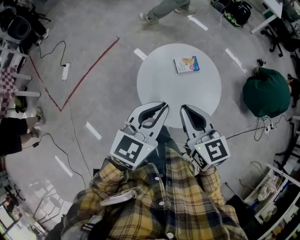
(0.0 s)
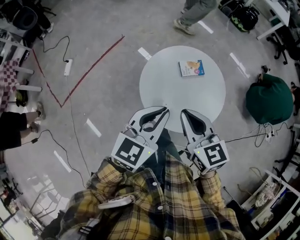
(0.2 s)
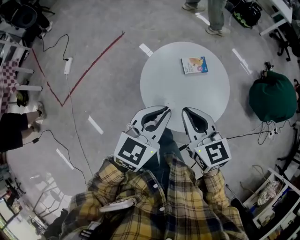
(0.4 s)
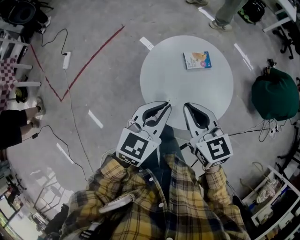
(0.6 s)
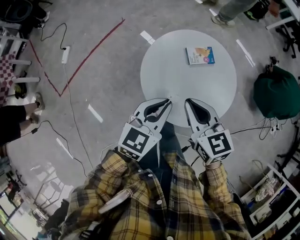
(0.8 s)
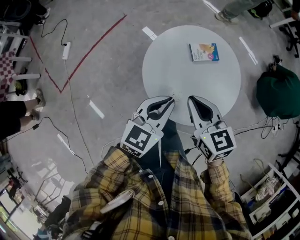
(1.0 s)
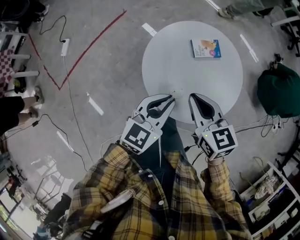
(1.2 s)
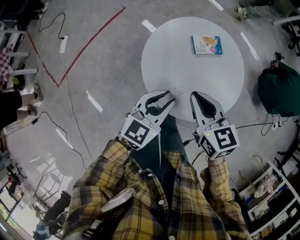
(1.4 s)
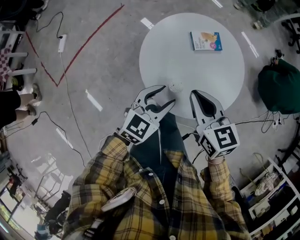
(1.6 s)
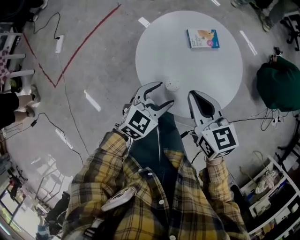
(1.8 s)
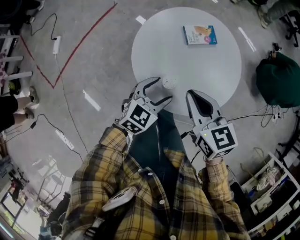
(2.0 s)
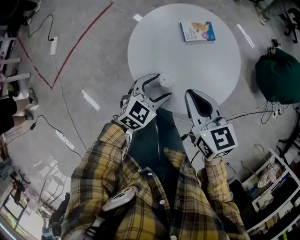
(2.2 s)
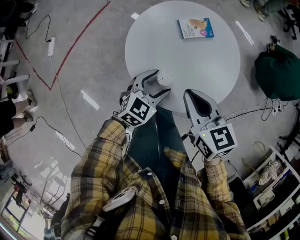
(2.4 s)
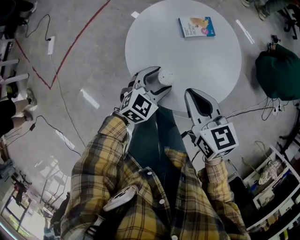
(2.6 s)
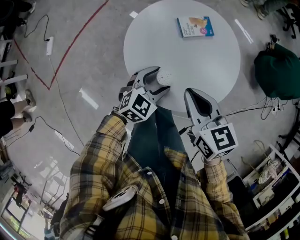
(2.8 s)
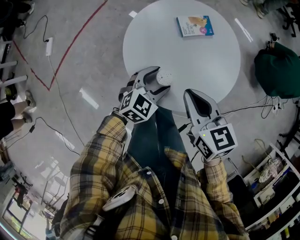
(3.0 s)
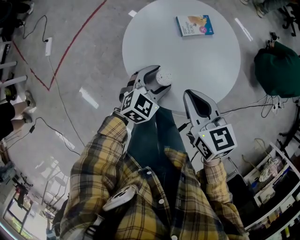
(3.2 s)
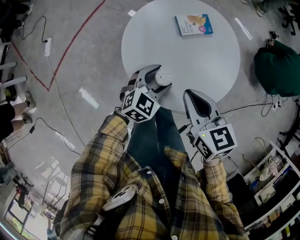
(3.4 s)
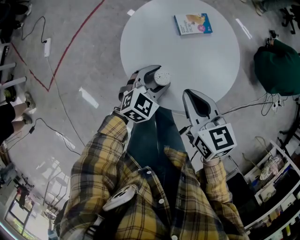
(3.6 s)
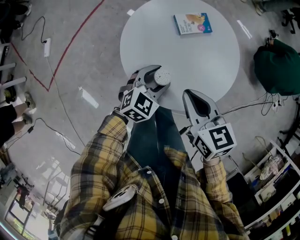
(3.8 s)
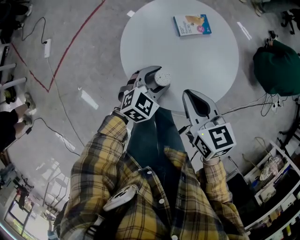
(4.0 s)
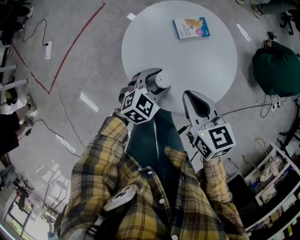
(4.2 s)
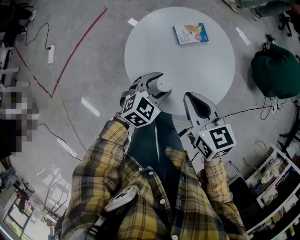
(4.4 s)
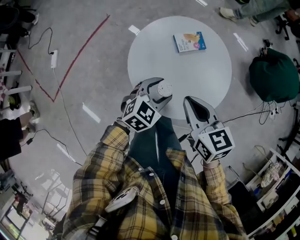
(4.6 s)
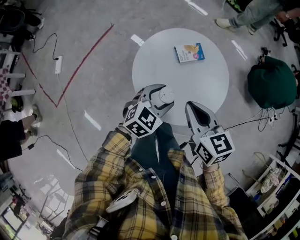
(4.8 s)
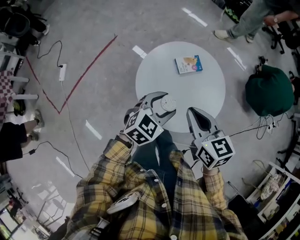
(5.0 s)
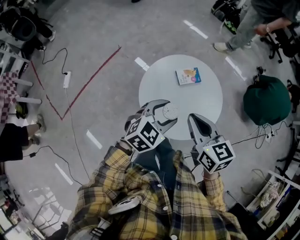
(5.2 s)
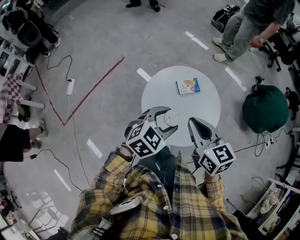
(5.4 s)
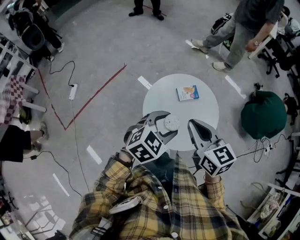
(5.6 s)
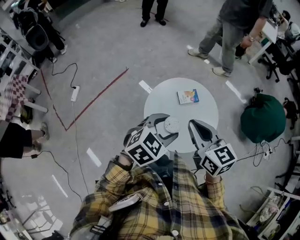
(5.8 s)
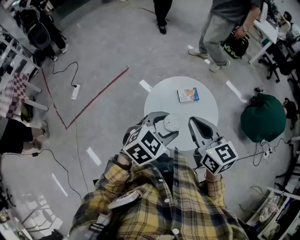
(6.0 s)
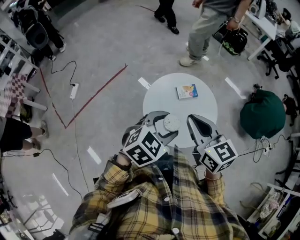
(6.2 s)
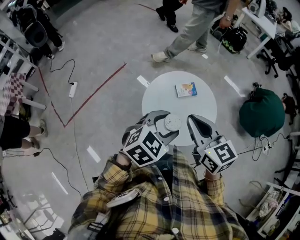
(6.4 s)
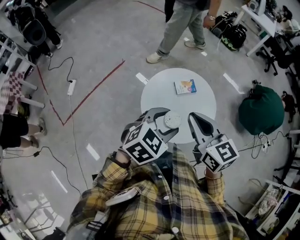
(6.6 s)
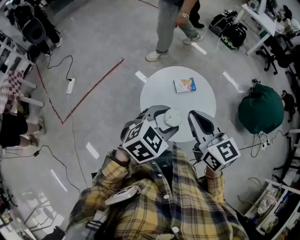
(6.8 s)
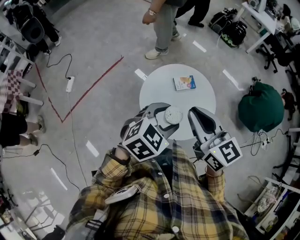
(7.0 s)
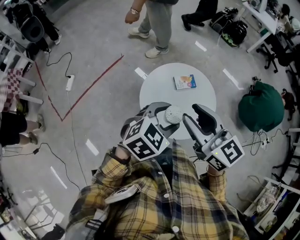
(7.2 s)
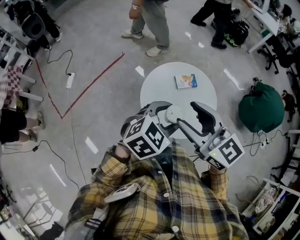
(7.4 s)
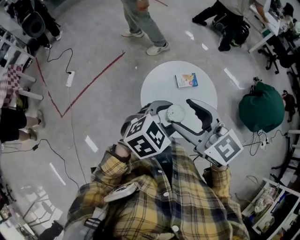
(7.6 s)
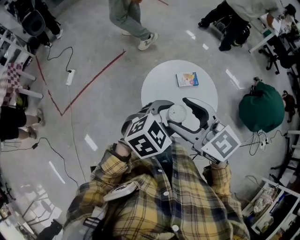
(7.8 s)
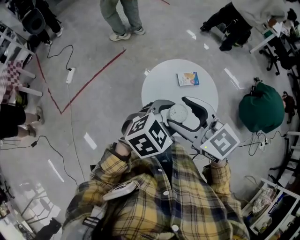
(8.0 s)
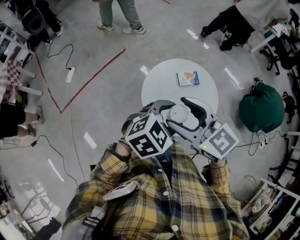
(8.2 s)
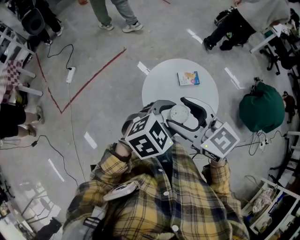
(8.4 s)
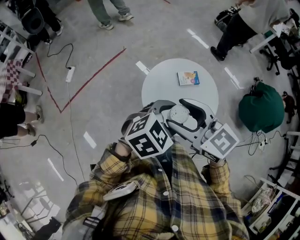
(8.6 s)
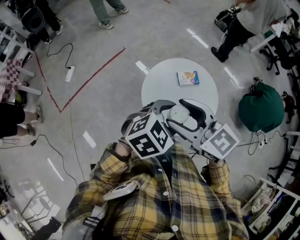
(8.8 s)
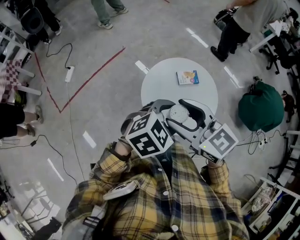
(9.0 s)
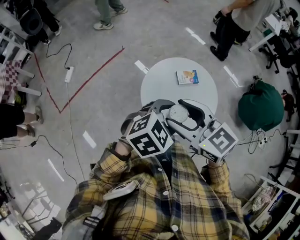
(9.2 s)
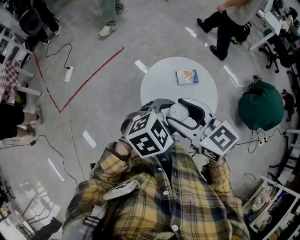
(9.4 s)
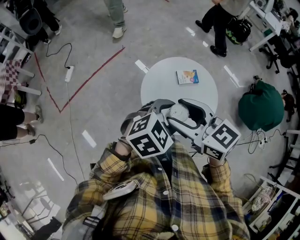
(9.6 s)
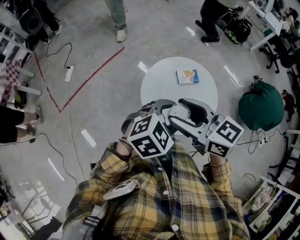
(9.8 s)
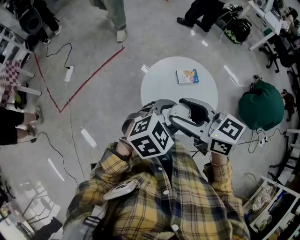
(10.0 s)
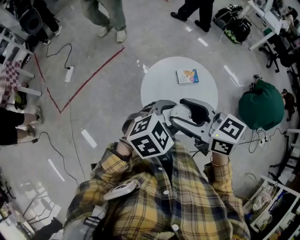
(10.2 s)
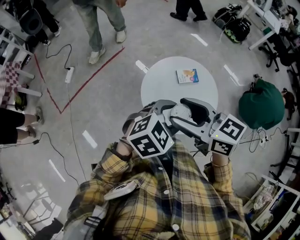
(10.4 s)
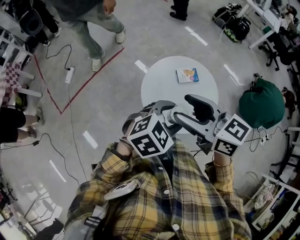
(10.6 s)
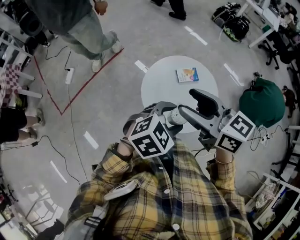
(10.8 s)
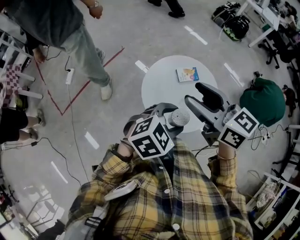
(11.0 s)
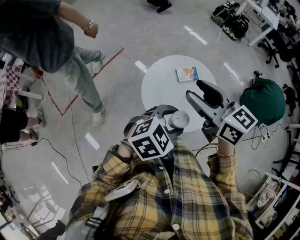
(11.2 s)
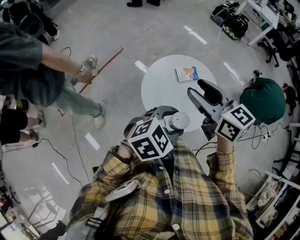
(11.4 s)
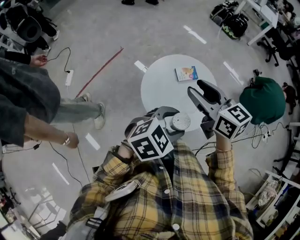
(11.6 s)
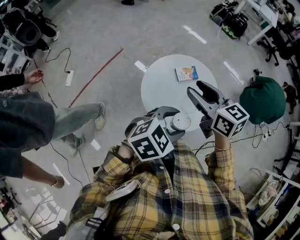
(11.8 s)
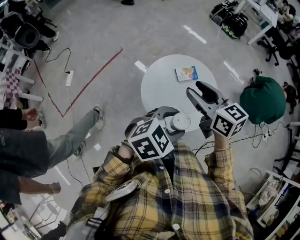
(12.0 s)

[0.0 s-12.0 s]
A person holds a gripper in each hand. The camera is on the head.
0.0 to 1.6 s: The left gripper is displaced downward by roughly 20 cm, and opens up; the right gripper is displaced downward by approximately 15 cm.
1.6 to 3.0 s: The left gripper travels downward by roughly 10 cm, and opens up.
3.0 to 4.4 s: The grippers stay close to where they were, moving slightly.
4.4 to 6.0 s: The grippers both shift upward by roughly 25 cm.
6.0 to 7.6 s: The right gripper ends up approximately 5 cm from where it was, swivels some 20 degrees, and opens up.
7.6 to 9.0 s: There are only small adjustments of the grippers.
9.0 to 10.4 s: The grippers make only small movements.
10.4 to 12.0 s: The right gripper moves forward and to the right, some 10 cm, and changes its angle by about 20 degrees.

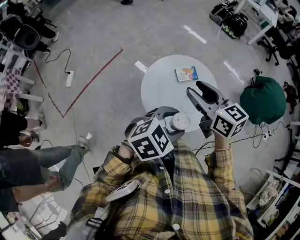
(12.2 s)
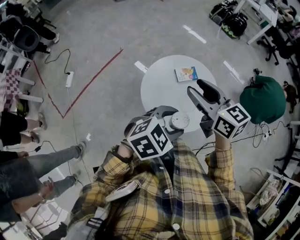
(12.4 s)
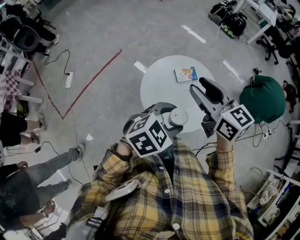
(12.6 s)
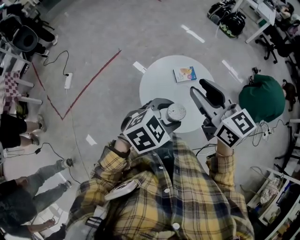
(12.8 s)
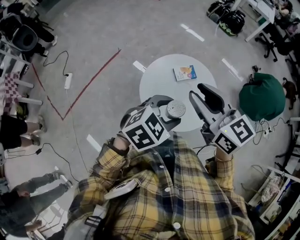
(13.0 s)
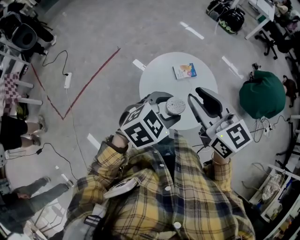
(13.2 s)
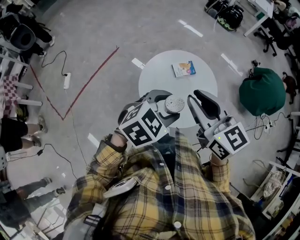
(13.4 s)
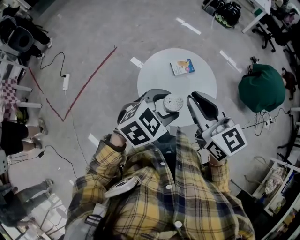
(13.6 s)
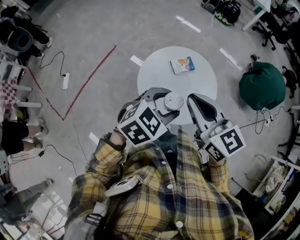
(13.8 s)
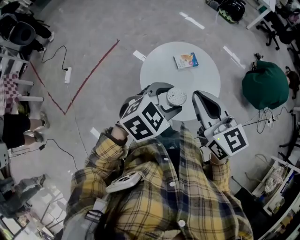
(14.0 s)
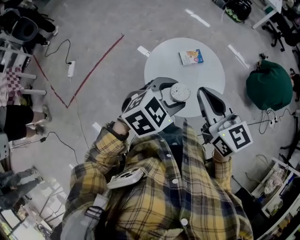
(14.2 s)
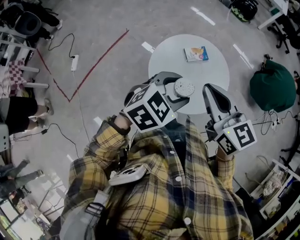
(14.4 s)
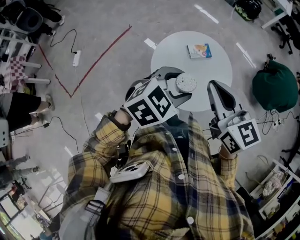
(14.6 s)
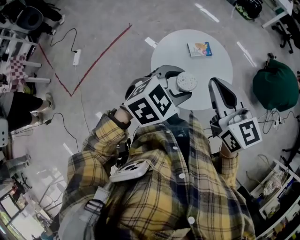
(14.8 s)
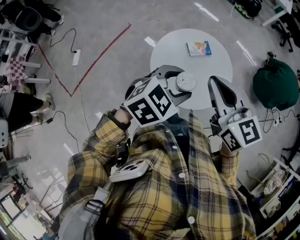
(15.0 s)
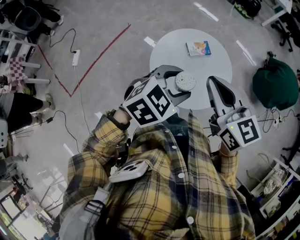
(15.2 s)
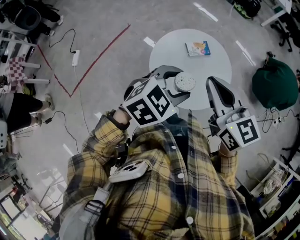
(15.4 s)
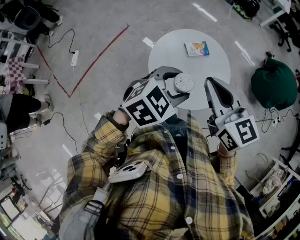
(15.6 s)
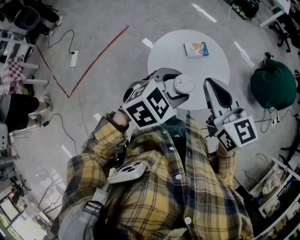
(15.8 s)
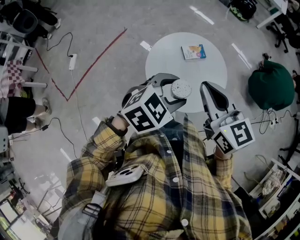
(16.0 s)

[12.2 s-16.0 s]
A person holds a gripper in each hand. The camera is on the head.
12.2 to 13.4 s: The right gripper goes some 5 cm backward and upward. Meanwhile the left gripper changes place by some 5 cm.
13.4 to 16.0 s: The grippers stay close to where they were, moving slightly.

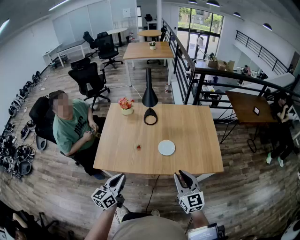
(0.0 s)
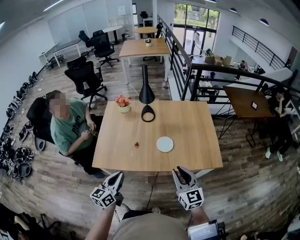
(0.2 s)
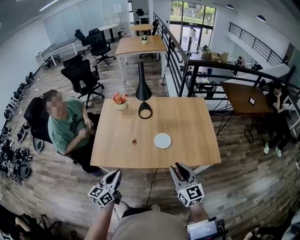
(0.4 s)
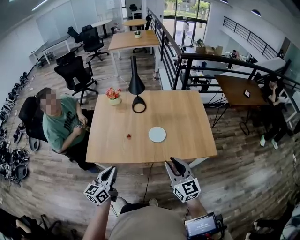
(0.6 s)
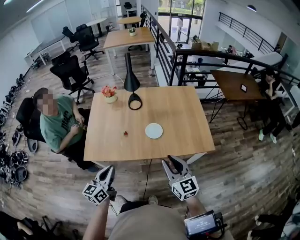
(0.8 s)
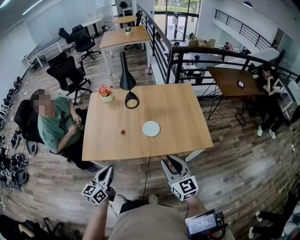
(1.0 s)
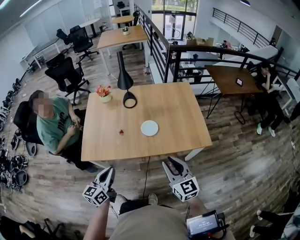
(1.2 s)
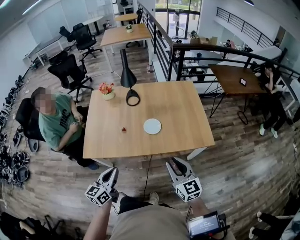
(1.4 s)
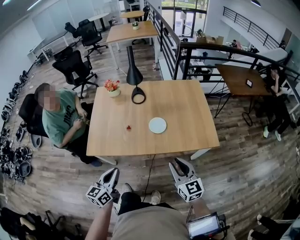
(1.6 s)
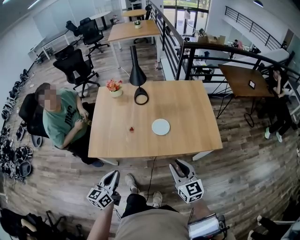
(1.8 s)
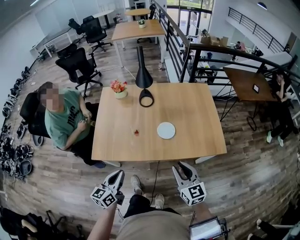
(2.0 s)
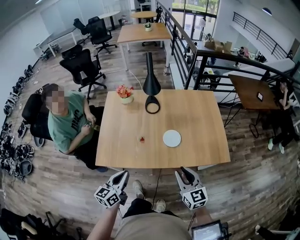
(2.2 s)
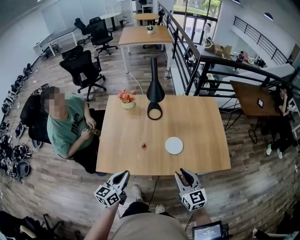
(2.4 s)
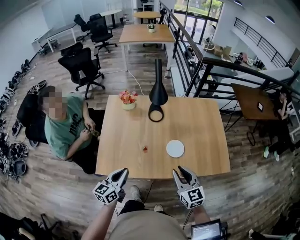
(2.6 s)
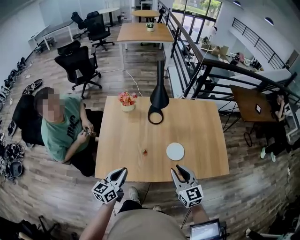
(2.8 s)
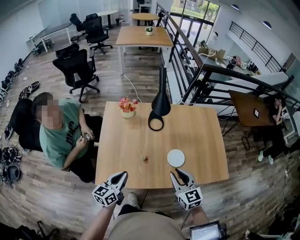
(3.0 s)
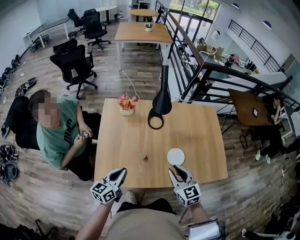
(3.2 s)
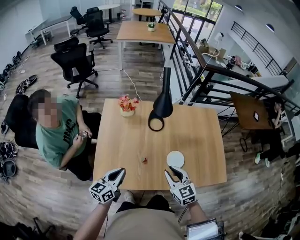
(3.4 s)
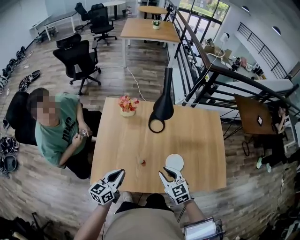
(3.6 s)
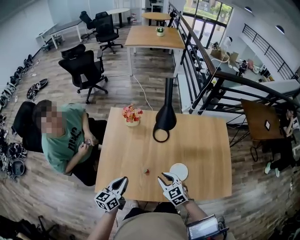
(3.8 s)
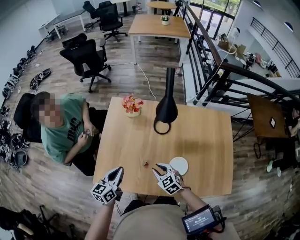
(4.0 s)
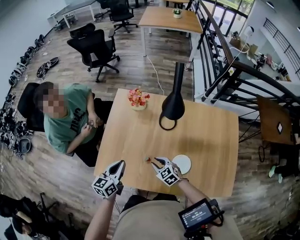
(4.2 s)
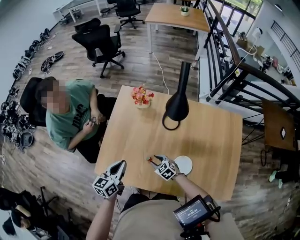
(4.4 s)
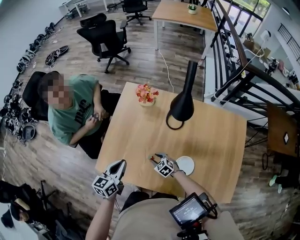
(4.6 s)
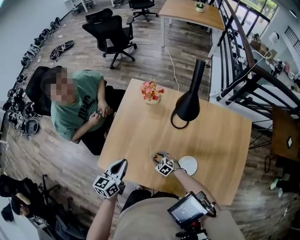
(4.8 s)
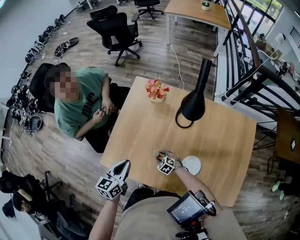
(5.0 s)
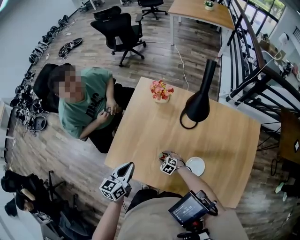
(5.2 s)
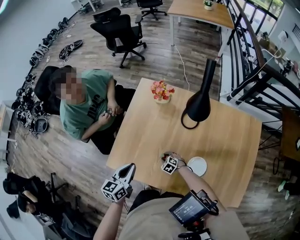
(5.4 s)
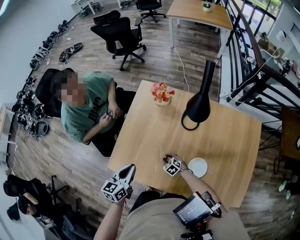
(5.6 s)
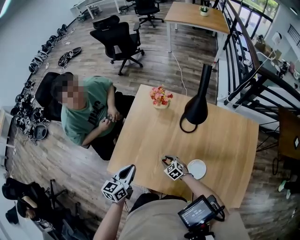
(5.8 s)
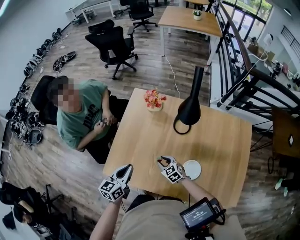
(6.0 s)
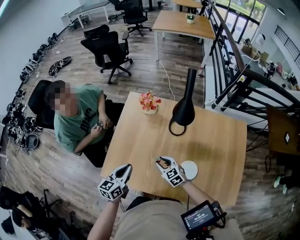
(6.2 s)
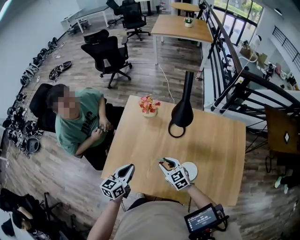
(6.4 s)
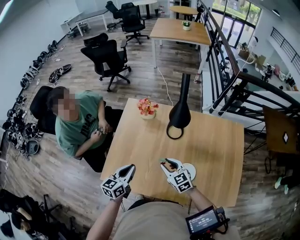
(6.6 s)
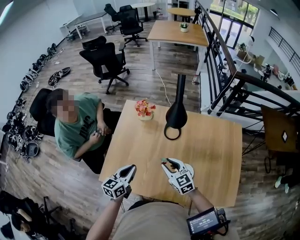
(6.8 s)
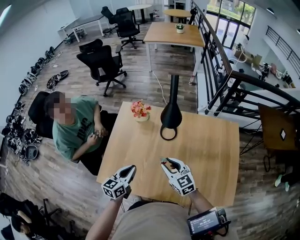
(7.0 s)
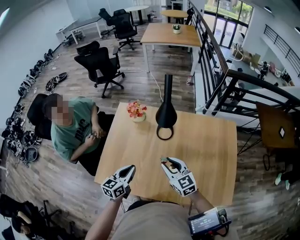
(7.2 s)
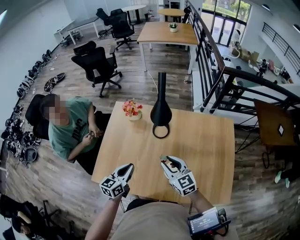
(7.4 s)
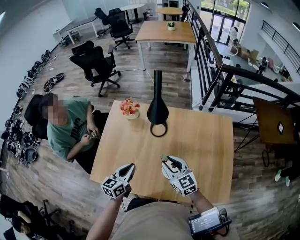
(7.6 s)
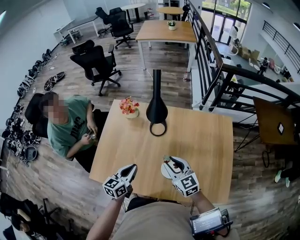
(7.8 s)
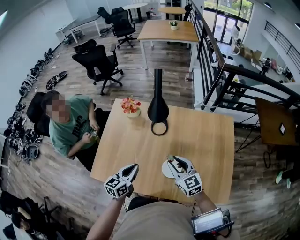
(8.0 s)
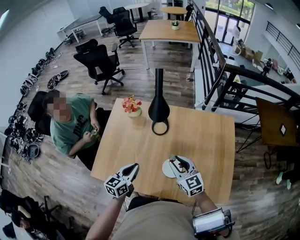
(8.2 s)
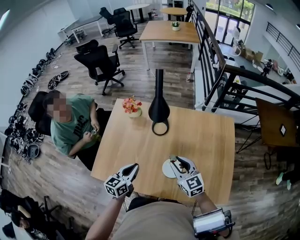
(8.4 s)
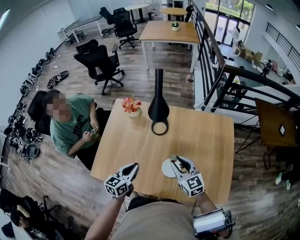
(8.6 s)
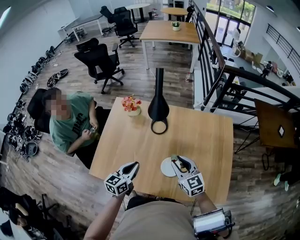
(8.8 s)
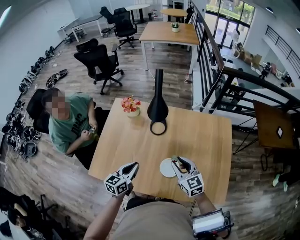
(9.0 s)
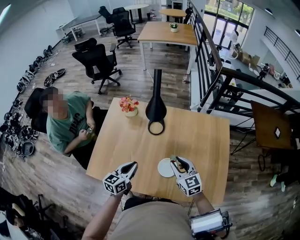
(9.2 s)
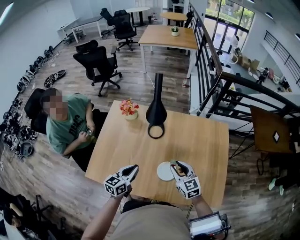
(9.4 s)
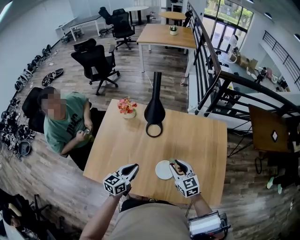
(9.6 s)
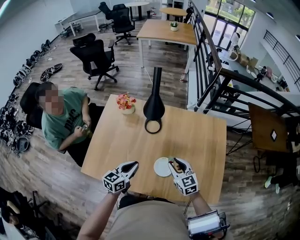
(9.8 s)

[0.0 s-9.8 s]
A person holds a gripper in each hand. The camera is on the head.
0.0 to 1.4 s: The left gripper shifts by about 5 cm. The right gripper changes place by roughly 5 cm.
1.4 to 2.8 s: The two grippers go about 30 cm forward and to the left.
2.8 to 4.2 s: The right gripper goes about 25 cm downward, and changes its angle by about 40 degrees, while the left gripper changes place by some 15 cm.
4.2 to 5.6 s: The right gripper is displaced downward by approximately 20 cm.
5.6 to 7.0 s: The right gripper is displaced upward by some 35 cm, and tilts its fingers some 40 degrees upward; the left gripper heads to the right, covering about 10 cm.
7.0 to 8.4 s: Both grippers travel together to the right, some 10 cm.
8.4 to 9.8 s: The right gripper is displaced downward by approximately 5 cm.
